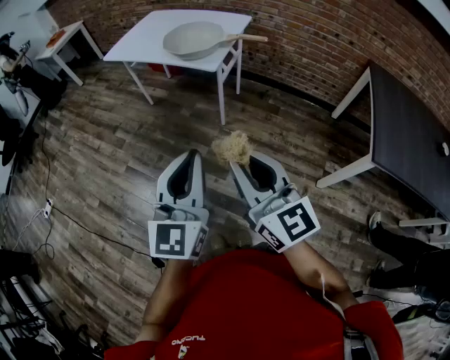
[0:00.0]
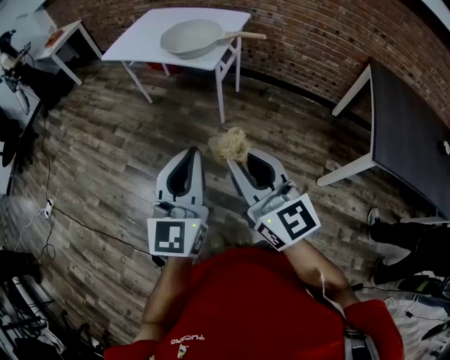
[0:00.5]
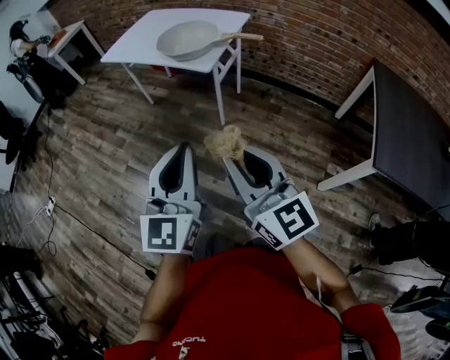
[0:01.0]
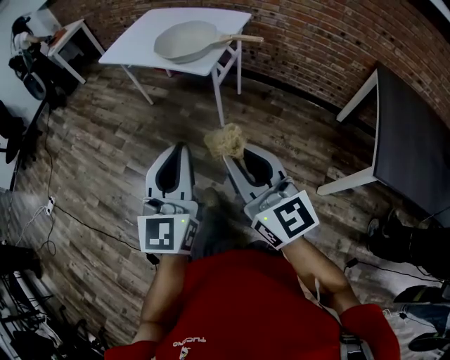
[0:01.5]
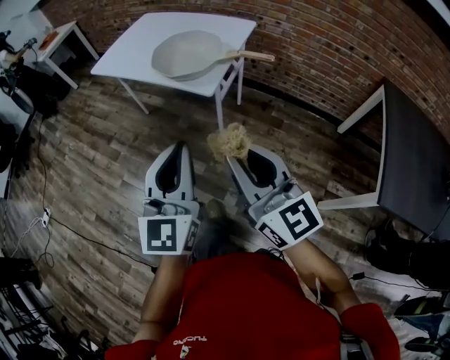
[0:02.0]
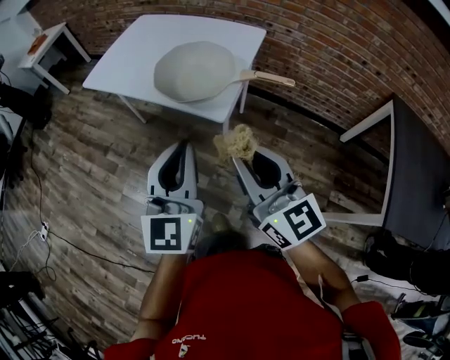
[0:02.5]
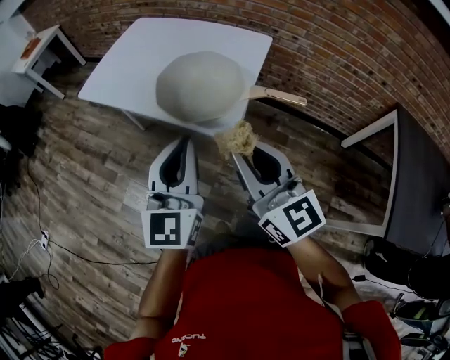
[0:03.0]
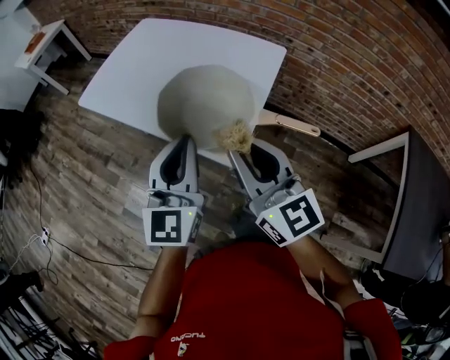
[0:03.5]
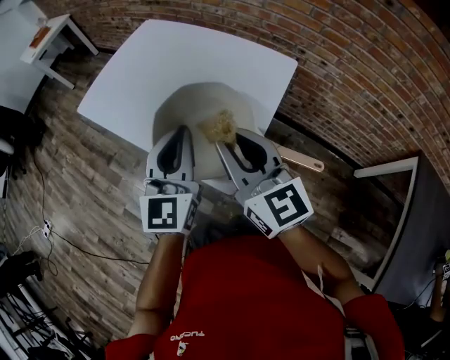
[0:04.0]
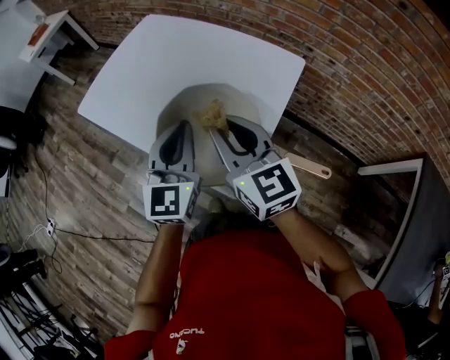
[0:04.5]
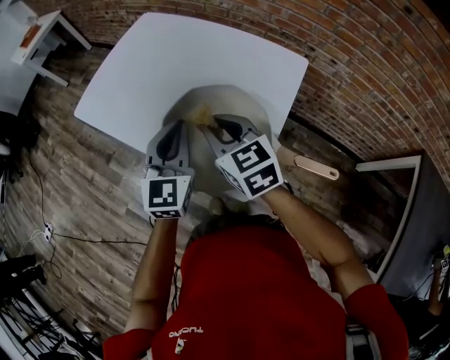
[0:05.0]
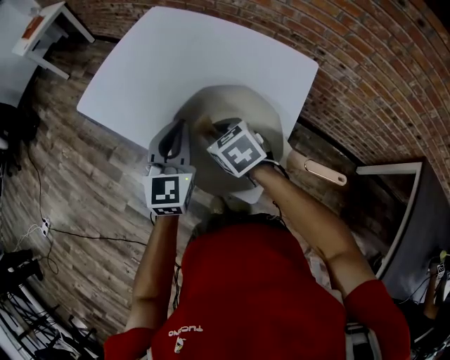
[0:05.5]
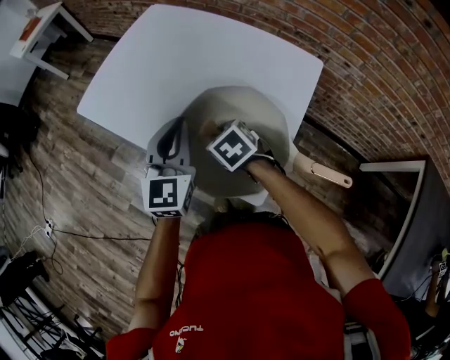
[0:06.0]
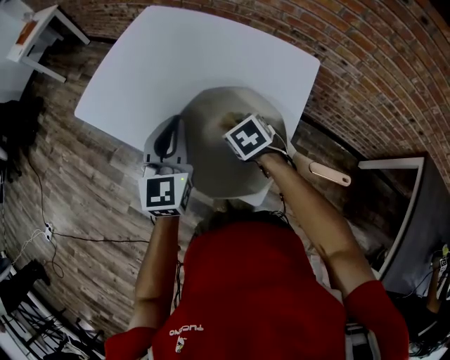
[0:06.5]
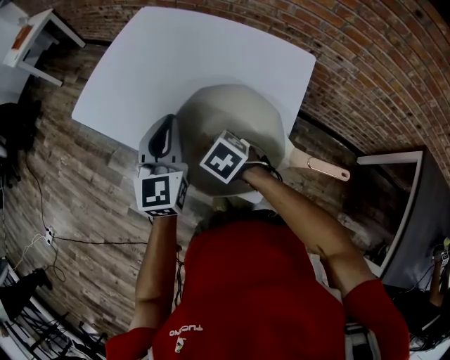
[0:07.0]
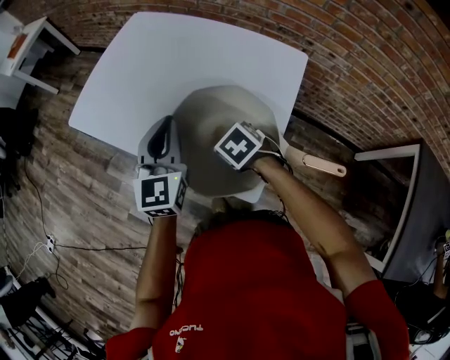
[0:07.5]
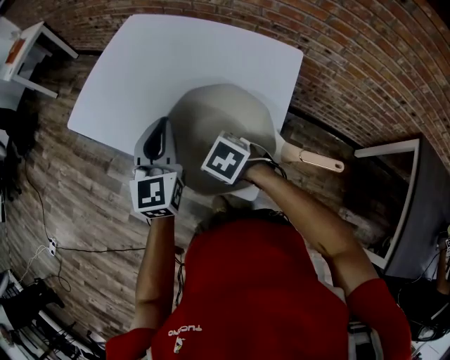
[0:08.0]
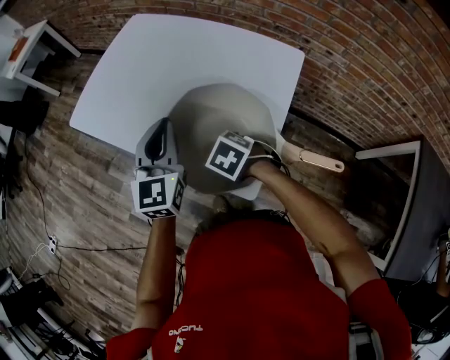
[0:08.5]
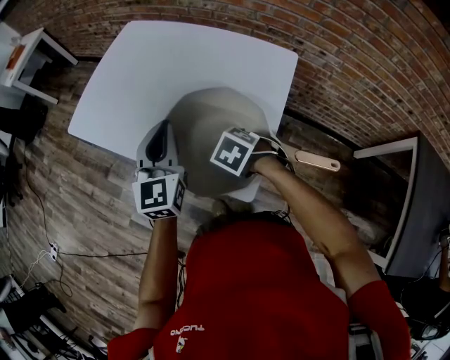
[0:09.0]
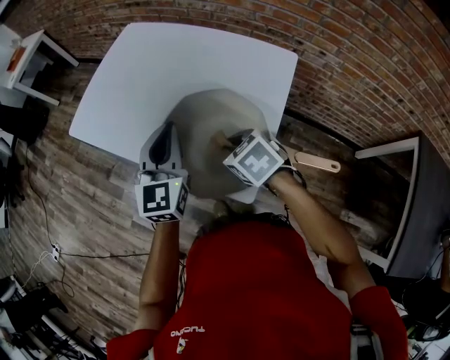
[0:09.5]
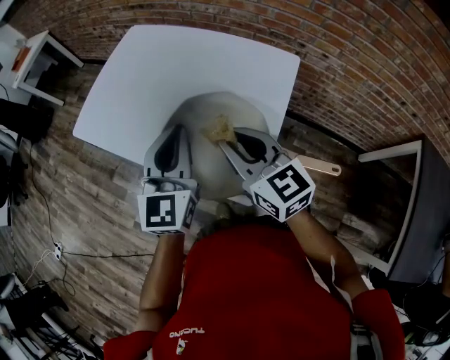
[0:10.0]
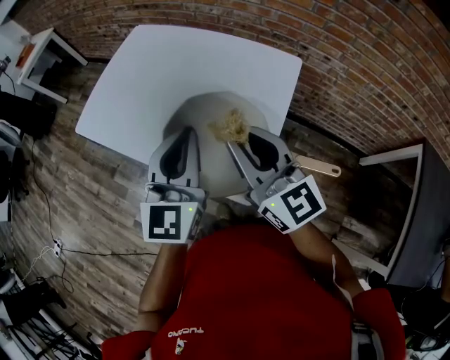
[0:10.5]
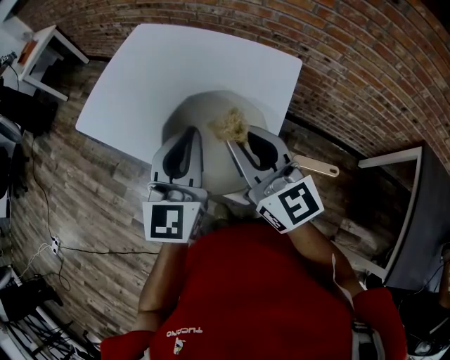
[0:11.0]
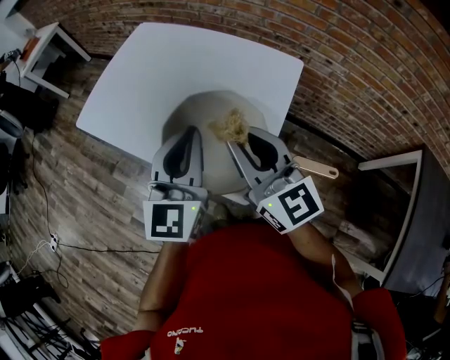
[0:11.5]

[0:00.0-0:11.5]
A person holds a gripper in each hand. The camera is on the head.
0:00.0 to 0:02.0: The grippers both shift forward by some 20 cm.
0:02.0 to 0:04.0: The two grippers travel together, forward, roughly 50 cm.
0:04.0 to 0:06.0: The left gripper shifts some 15 cm forward, to the left and downward. The right gripper moves downward and forward, about 25 cm, and tilts its fingers about 60 degrees downward.
0:06.0 to 0:07.5: The right gripper goes left and right, some 10 cm each way, reversing 2 times.
0:07.5 to 0:09.5: The right gripper heads upward, covering some 5 cm.
0:09.5 to 0:11.5: The left gripper is displaced upward, backward and to the right by approximately 10 cm, while the right gripper travels upward by about 20 cm, and tips its fingers upward by some 60 degrees.

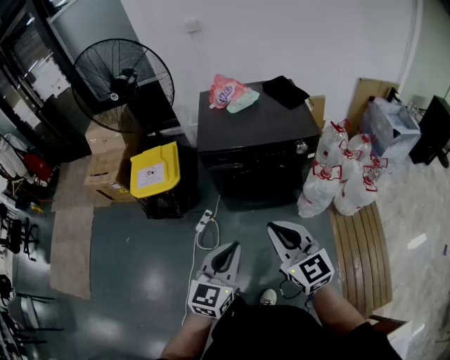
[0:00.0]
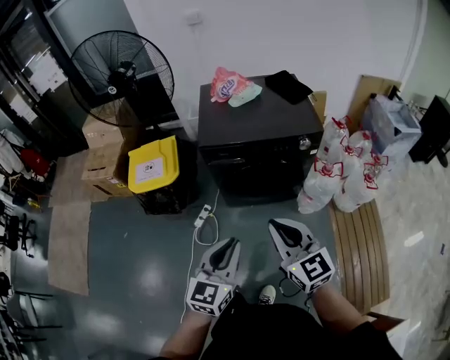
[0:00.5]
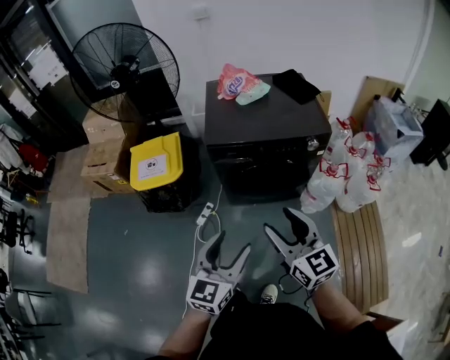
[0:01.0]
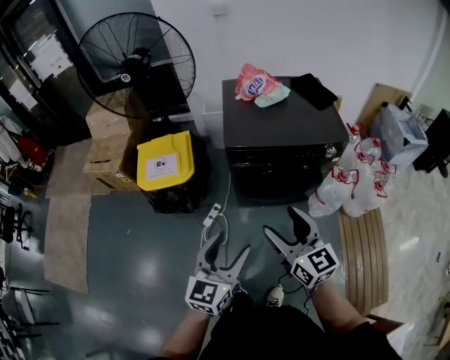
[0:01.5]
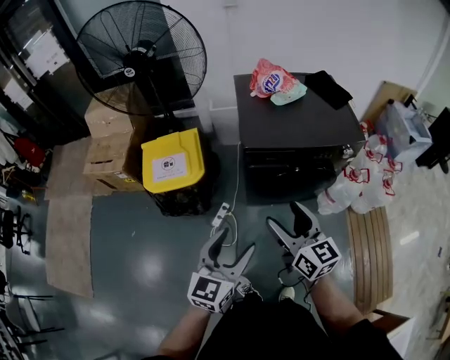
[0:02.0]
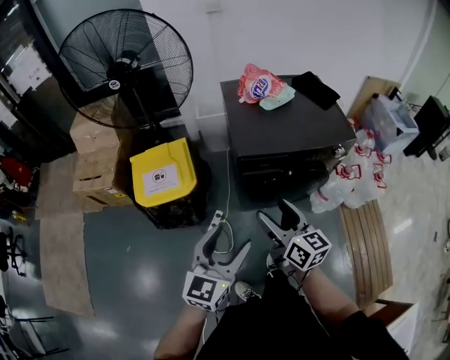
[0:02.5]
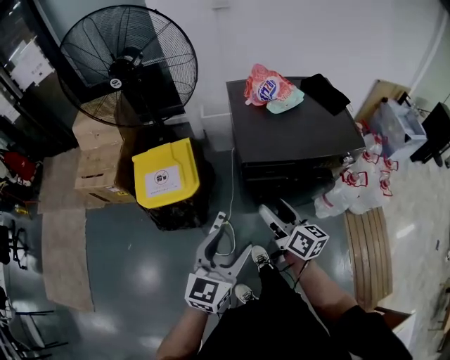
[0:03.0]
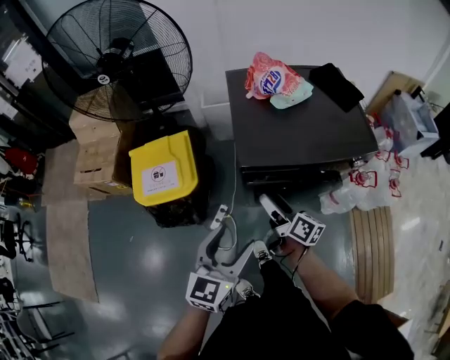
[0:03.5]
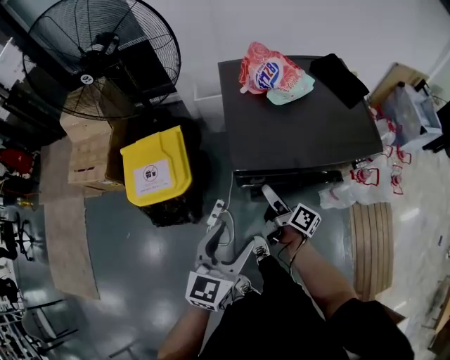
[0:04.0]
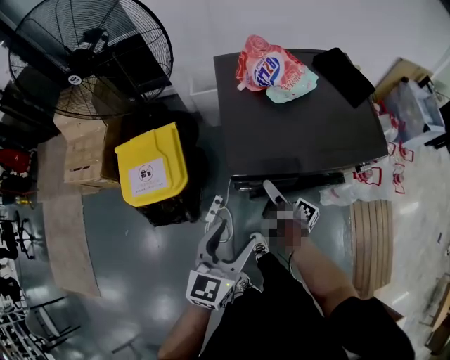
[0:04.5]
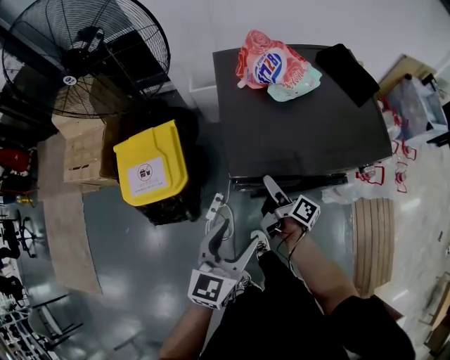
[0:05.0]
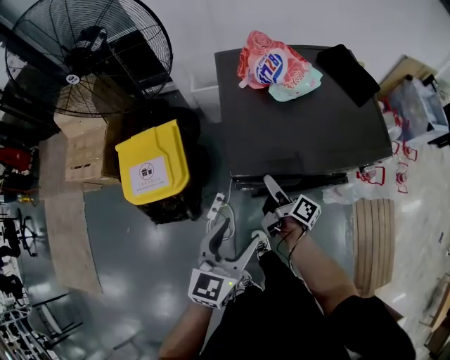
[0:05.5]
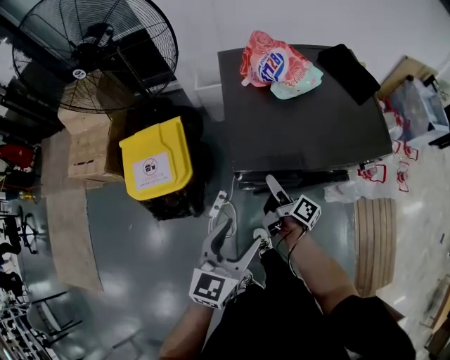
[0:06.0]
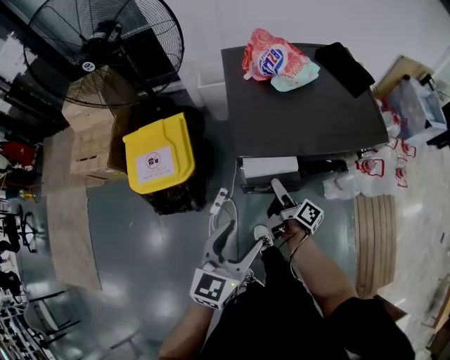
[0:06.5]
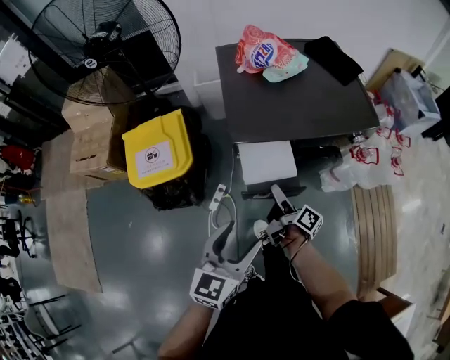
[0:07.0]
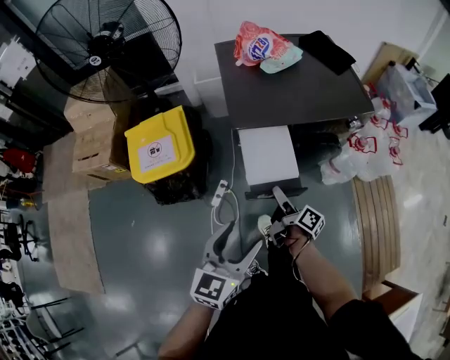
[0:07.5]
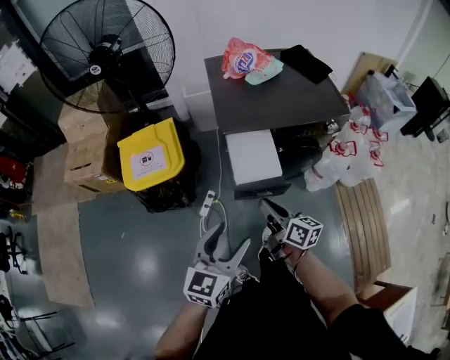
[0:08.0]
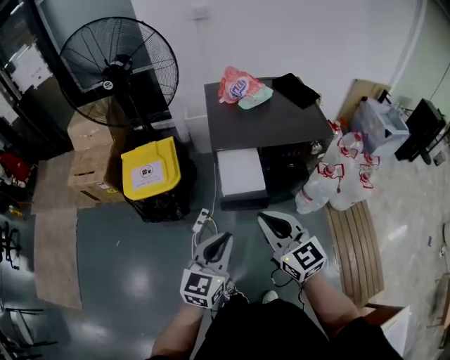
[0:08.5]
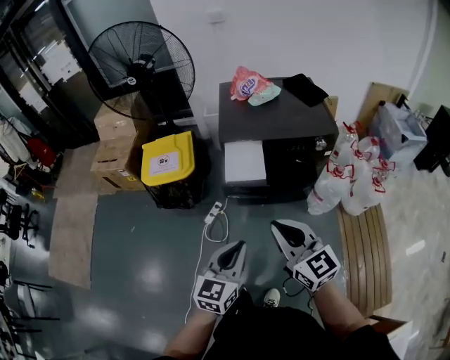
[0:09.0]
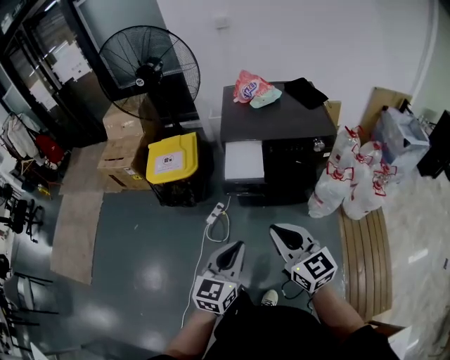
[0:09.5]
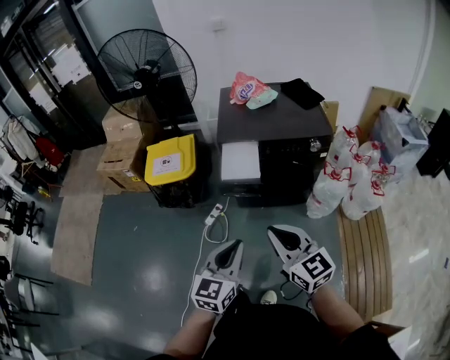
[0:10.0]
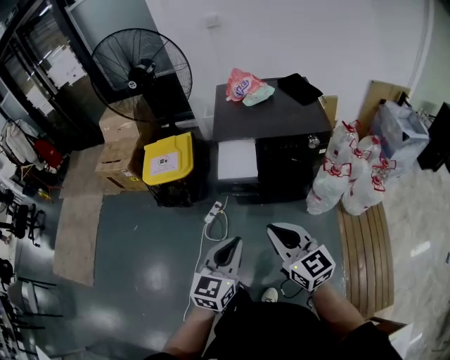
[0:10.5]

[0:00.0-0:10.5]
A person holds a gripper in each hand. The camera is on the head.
0:00.0 to 0:02.0: The two grippers go some 25 cm to the left and forward. The left gripper opens up. The right gripper swivels roughly 20 degrees, and opens up.
0:02.0 to 0:04.0: The left gripper shifts approximately 20 cm forward; the right gripper goes roughly 30 cm forward and downward, and rotates around the line of its fingers by roughly 60 degrees, clockwise from behind.
0:04.0 to 0:06.5: The right gripper goes forward and returns, some 5 cm each way.
0:06.5 to 0:08.5: The left gripper shifts roughly 20 cm backward, and closes, while the right gripper travels backward and upward by roughly 40 cm, rolls counterclockwise, seen from behind, by roughly 80 degrees, and closes.
0:08.5 to 0:10.5: The two grippers go some 15 cm backward and to the right.

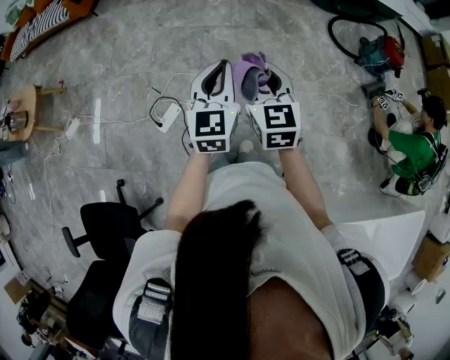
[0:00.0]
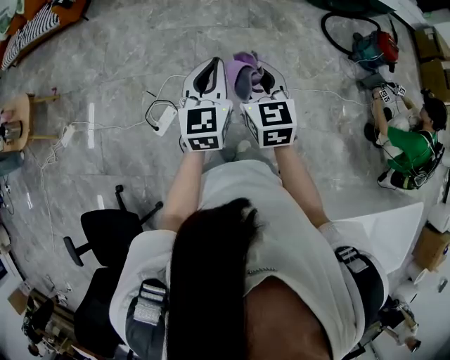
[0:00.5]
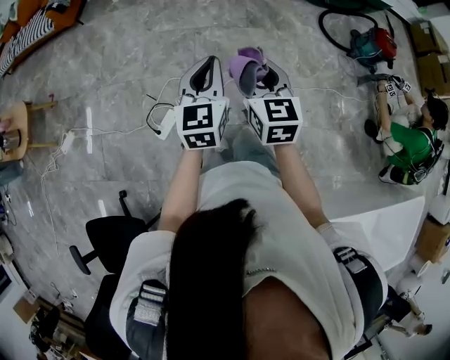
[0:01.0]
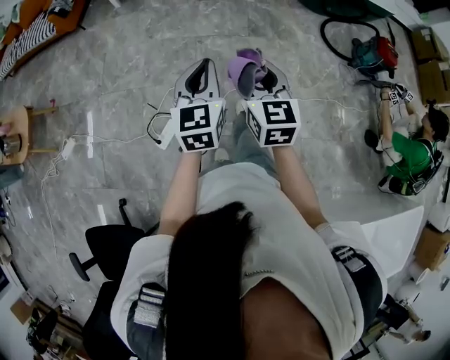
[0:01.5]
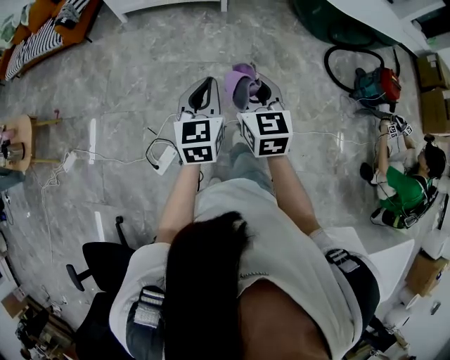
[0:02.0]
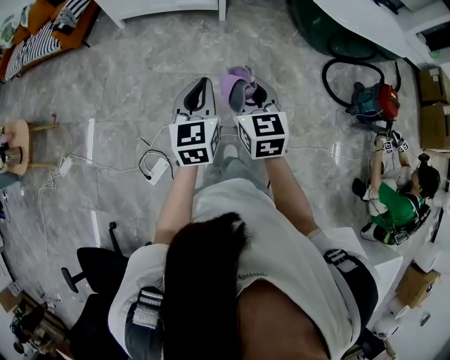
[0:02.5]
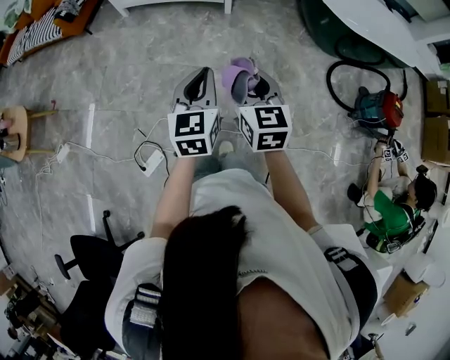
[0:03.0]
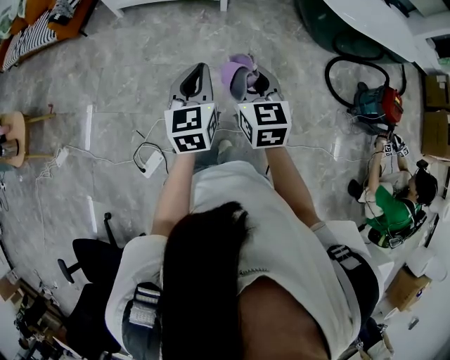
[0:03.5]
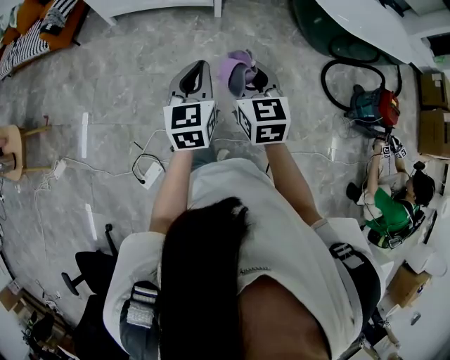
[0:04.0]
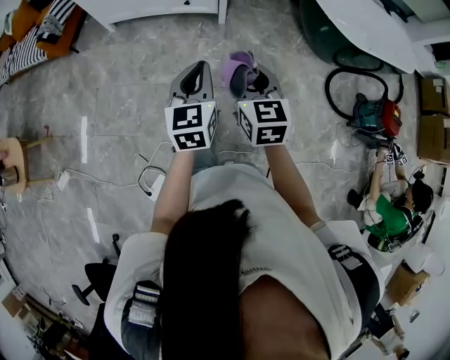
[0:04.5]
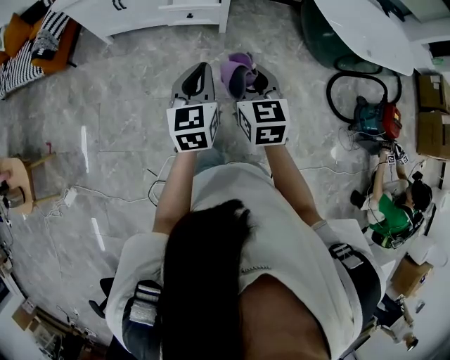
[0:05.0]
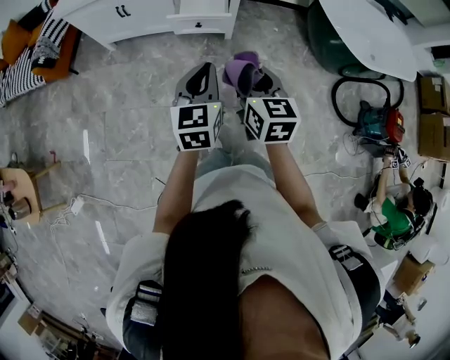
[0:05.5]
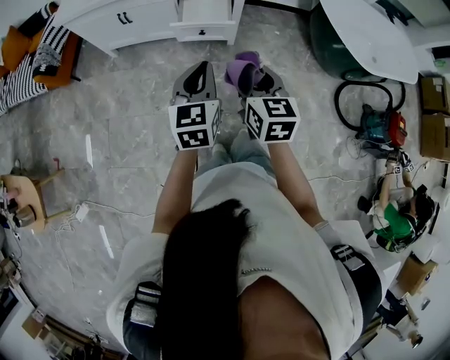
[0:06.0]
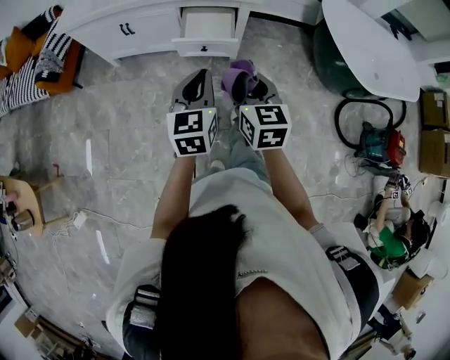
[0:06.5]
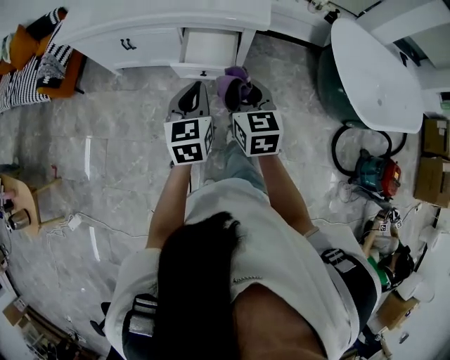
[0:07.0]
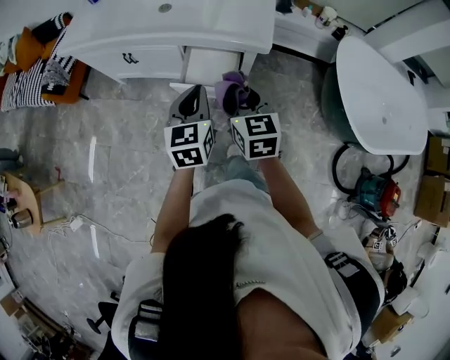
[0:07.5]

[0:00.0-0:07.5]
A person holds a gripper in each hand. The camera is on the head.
0:00.0 to 0:02.0: The grippers both shift forward by about 20 cm.
0:02.0 to 0:04.0: The left gripper travels forward by about 20 cm. Meanwhile the right gripper is displaced forward and to the right by about 25 cm.
0:04.0 to 0:05.5: The grippers both shift forward and to the left by about 30 cm.
0:05.5 to 0:07.5: Both grippers travel together forward, some 30 cm.
